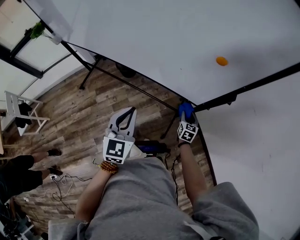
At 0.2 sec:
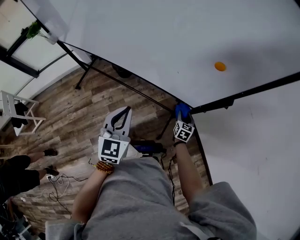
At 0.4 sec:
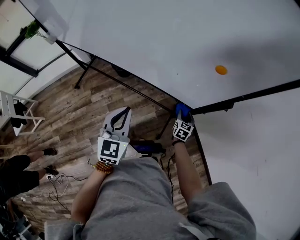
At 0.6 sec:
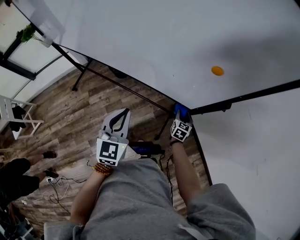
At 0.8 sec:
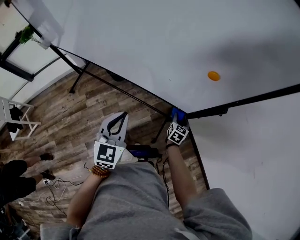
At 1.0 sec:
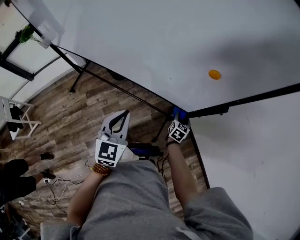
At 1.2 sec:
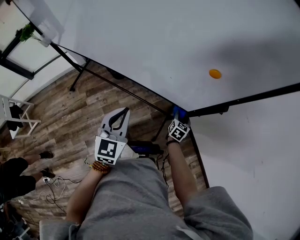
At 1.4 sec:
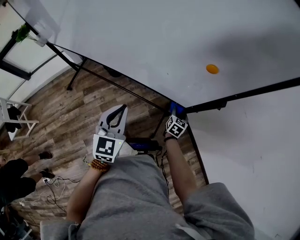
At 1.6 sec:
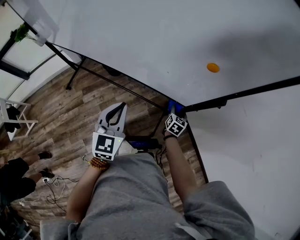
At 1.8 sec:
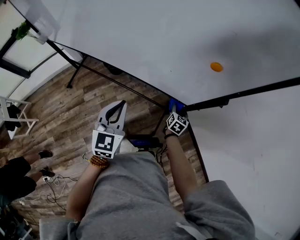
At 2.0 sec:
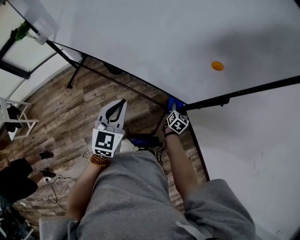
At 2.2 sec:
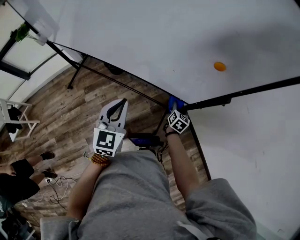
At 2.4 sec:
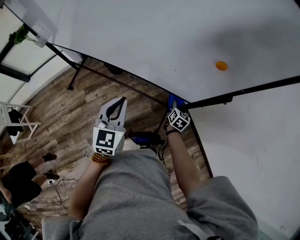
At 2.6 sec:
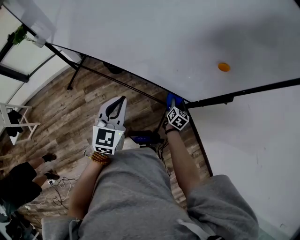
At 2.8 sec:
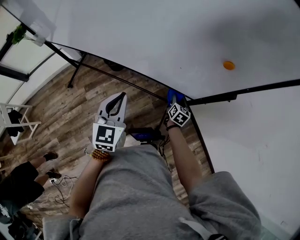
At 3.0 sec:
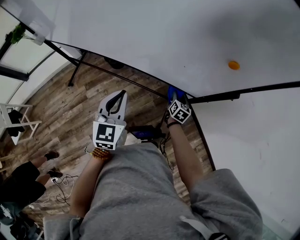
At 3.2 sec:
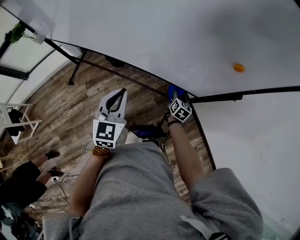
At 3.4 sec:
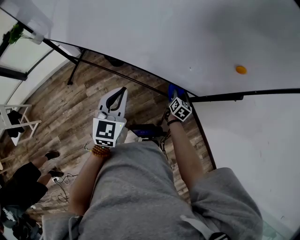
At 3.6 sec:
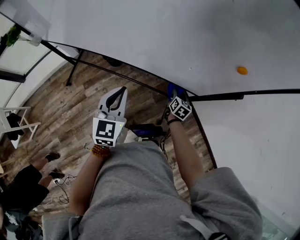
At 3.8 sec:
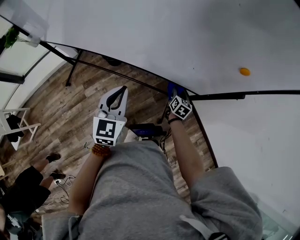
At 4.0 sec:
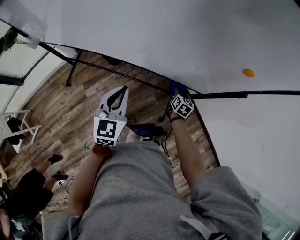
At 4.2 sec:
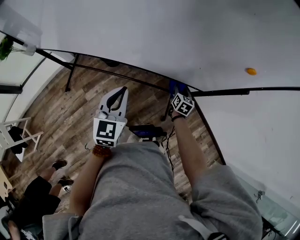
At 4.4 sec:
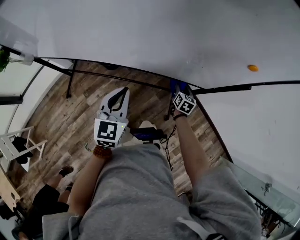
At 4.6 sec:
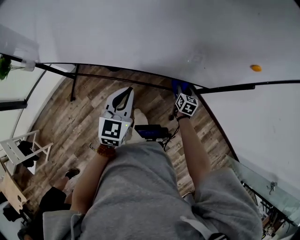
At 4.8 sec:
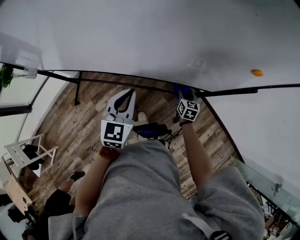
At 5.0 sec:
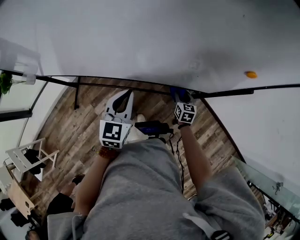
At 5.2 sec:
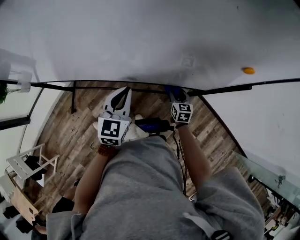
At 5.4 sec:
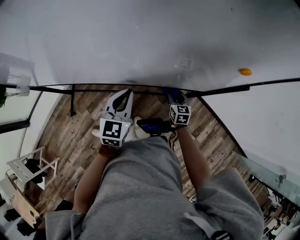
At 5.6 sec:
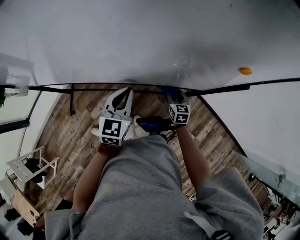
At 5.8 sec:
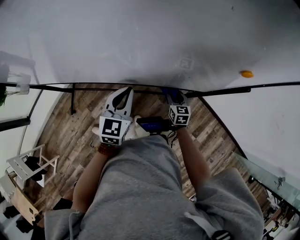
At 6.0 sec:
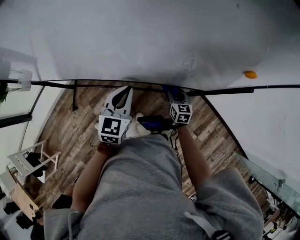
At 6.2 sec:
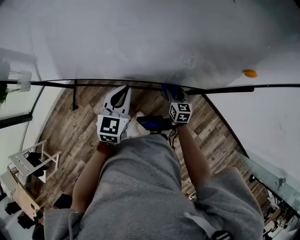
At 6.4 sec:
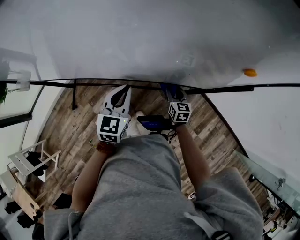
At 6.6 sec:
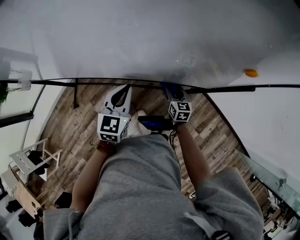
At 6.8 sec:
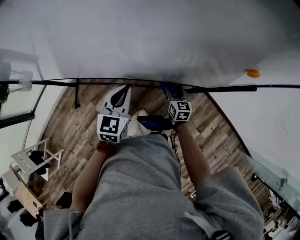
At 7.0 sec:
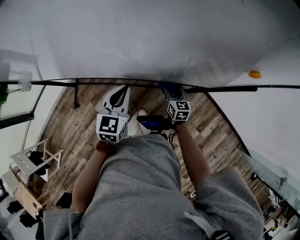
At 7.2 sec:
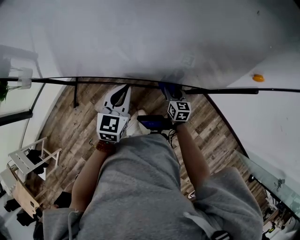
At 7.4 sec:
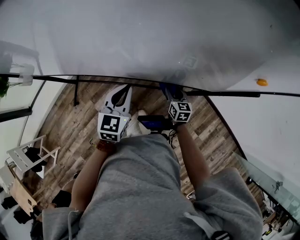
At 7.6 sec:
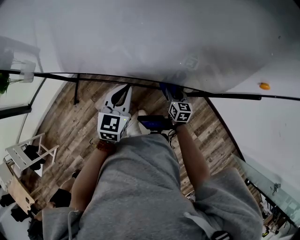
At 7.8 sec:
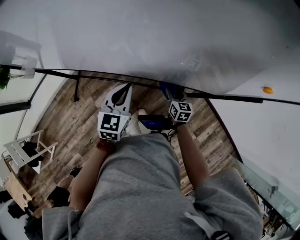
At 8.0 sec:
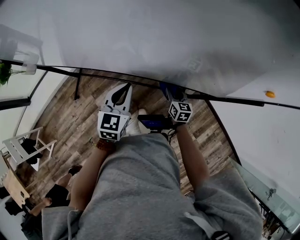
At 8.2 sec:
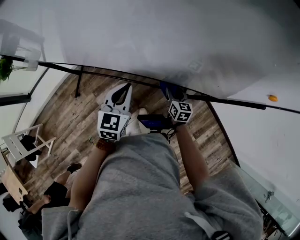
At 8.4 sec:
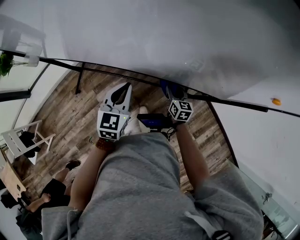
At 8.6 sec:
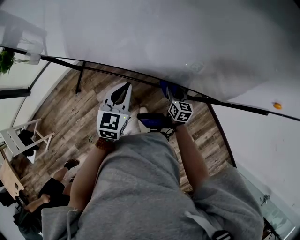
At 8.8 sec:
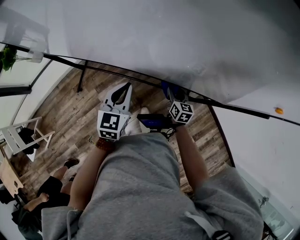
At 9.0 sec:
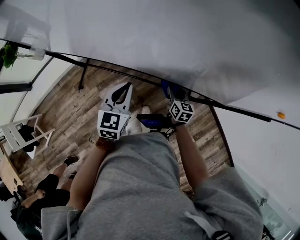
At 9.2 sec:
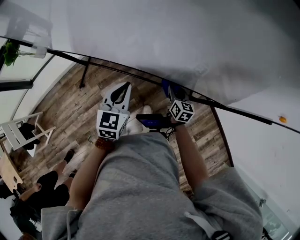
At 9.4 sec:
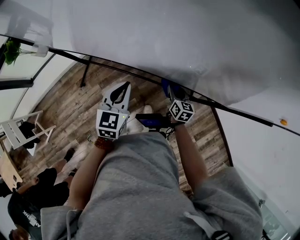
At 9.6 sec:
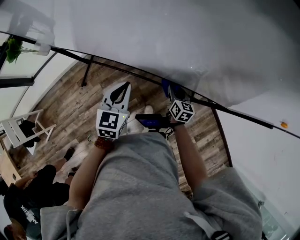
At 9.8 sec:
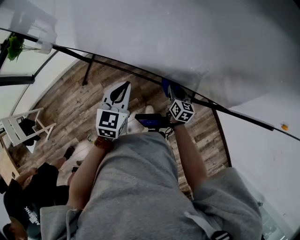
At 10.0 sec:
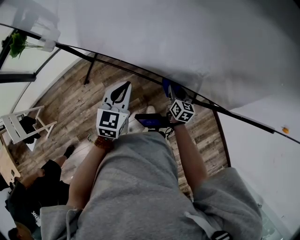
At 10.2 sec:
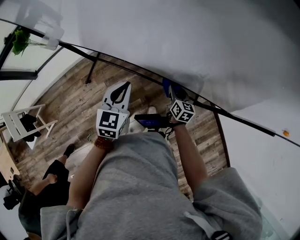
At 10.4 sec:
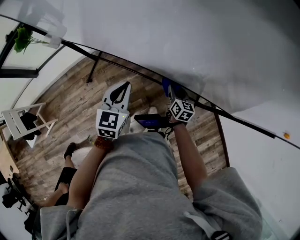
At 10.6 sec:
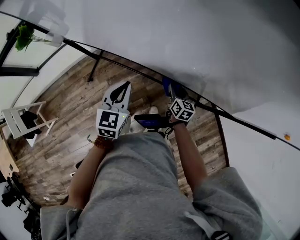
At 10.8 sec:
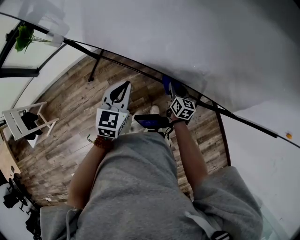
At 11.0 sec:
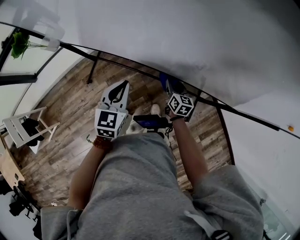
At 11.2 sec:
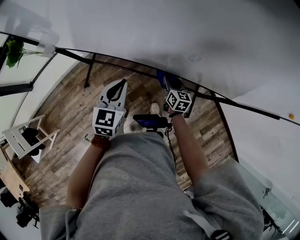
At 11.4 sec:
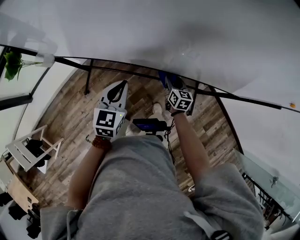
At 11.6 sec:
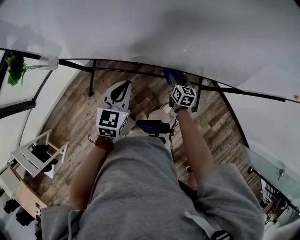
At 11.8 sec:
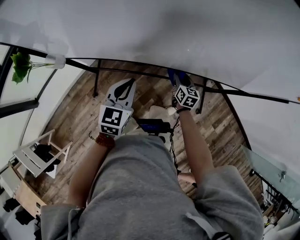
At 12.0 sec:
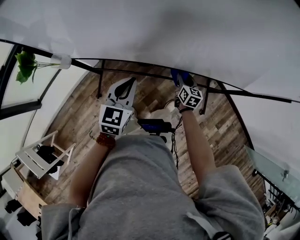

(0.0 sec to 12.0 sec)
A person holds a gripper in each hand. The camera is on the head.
0.0 sec - 1.6 sec: The grippers stay close to where they were, moving slightly.
1.6 sec - 3.0 sec: The two grippers go some 5 cm to the left.
3.0 sec - 4.4 sec: The left gripper is displaced to the left by roughly 10 cm.
4.4 sec - 6.0 sec: The left gripper moves forward, some 10 cm.
6.0 sec - 7.6 sec: Both grippers move to the left, roughly 5 cm.
7.6 sec - 9.0 sec: Both grippers travel together to the left, about 10 cm.
9.0 sec - 10.4 sec: The grippers both shift to the left by roughly 10 cm.
10.4 sec - 12.0 sec: The two grippers go about 10 cm to the left.

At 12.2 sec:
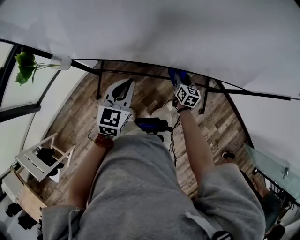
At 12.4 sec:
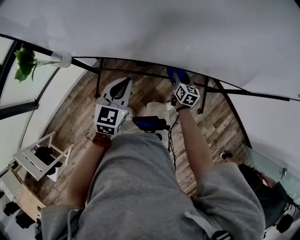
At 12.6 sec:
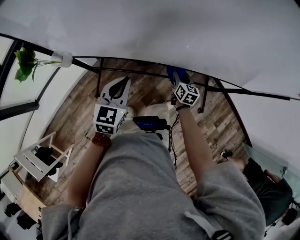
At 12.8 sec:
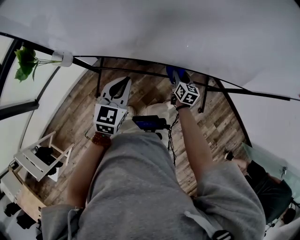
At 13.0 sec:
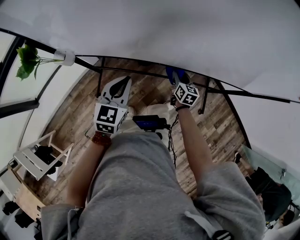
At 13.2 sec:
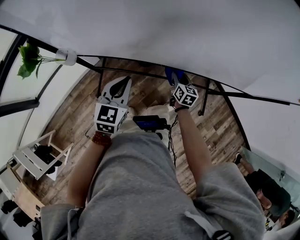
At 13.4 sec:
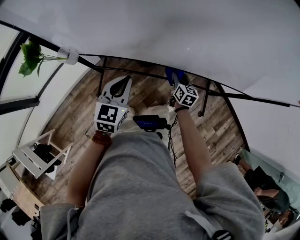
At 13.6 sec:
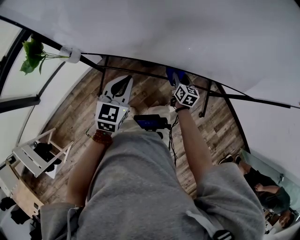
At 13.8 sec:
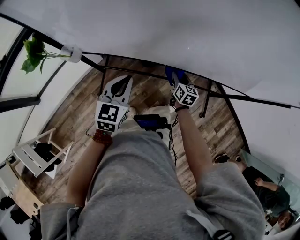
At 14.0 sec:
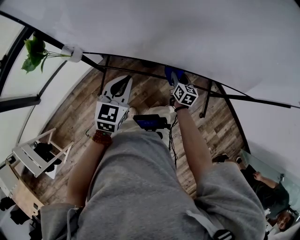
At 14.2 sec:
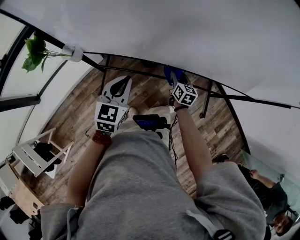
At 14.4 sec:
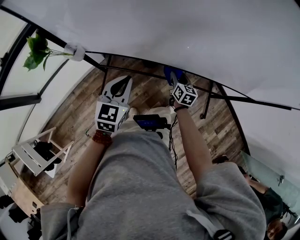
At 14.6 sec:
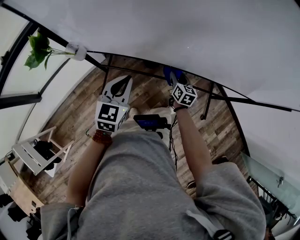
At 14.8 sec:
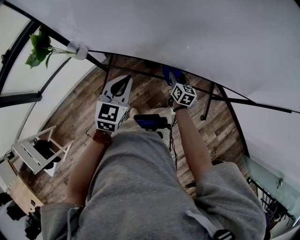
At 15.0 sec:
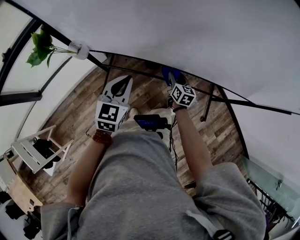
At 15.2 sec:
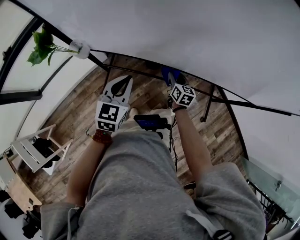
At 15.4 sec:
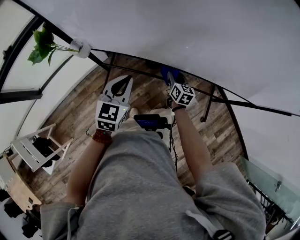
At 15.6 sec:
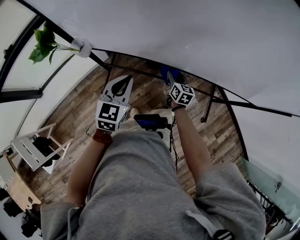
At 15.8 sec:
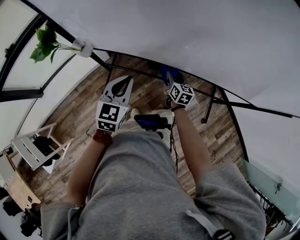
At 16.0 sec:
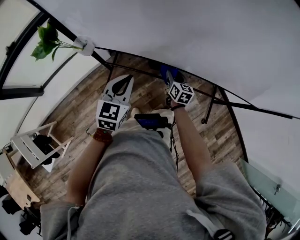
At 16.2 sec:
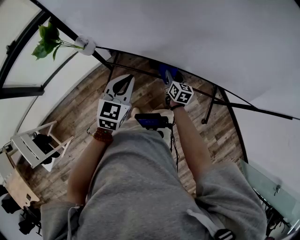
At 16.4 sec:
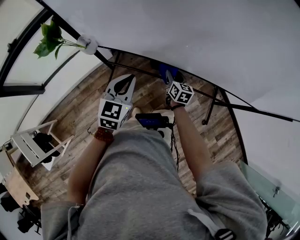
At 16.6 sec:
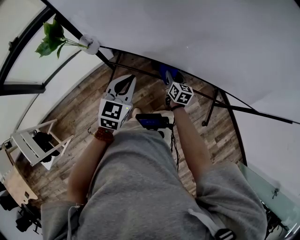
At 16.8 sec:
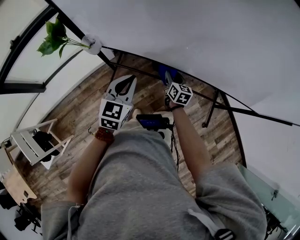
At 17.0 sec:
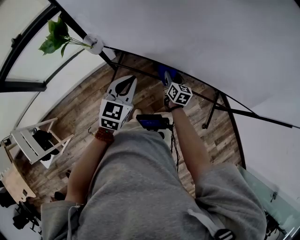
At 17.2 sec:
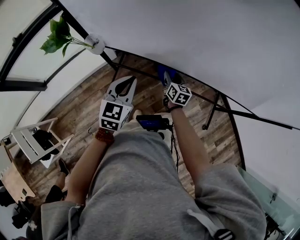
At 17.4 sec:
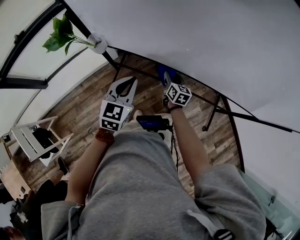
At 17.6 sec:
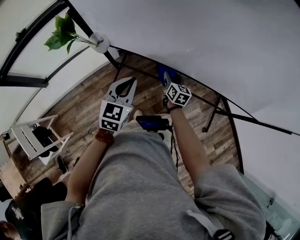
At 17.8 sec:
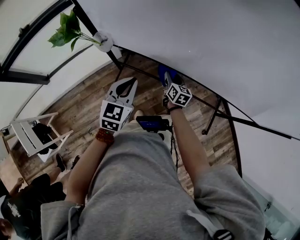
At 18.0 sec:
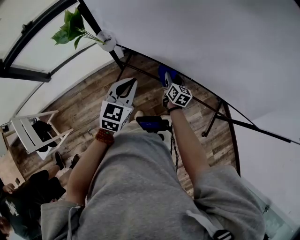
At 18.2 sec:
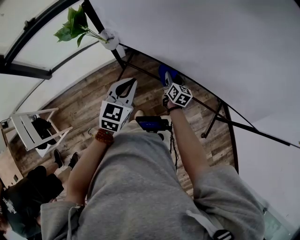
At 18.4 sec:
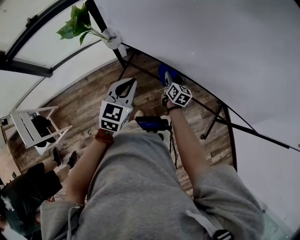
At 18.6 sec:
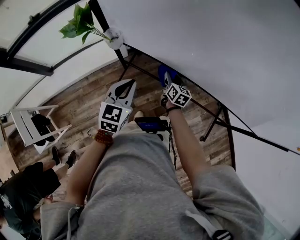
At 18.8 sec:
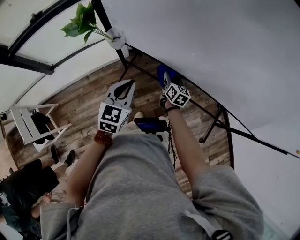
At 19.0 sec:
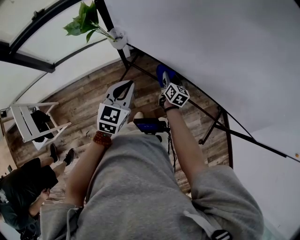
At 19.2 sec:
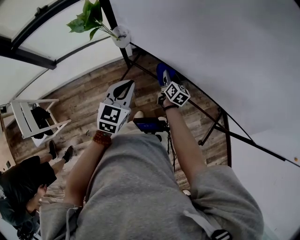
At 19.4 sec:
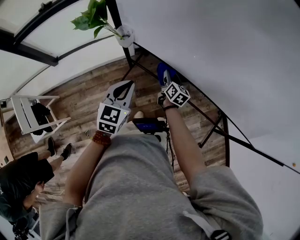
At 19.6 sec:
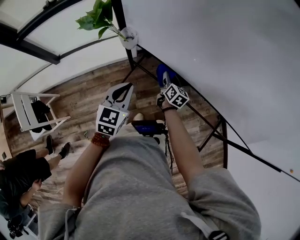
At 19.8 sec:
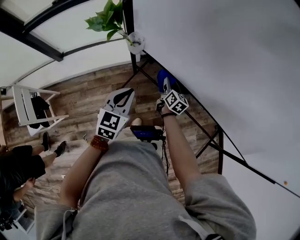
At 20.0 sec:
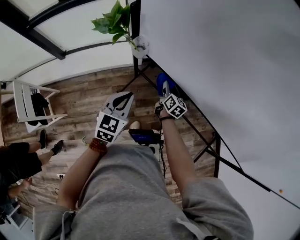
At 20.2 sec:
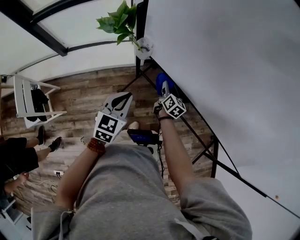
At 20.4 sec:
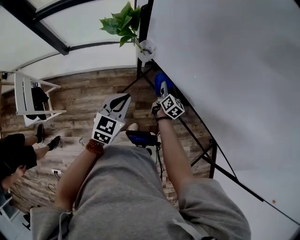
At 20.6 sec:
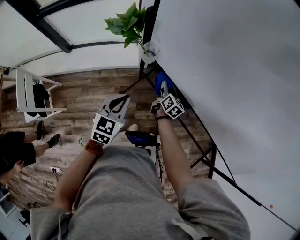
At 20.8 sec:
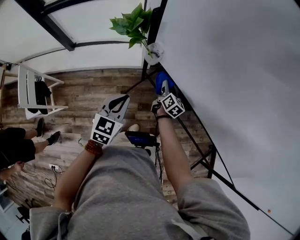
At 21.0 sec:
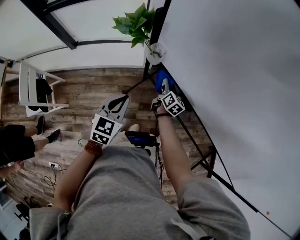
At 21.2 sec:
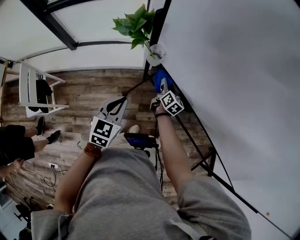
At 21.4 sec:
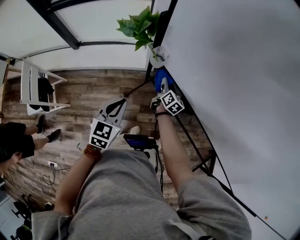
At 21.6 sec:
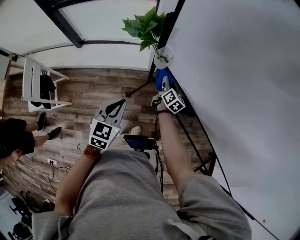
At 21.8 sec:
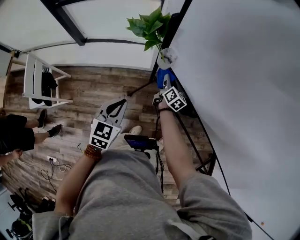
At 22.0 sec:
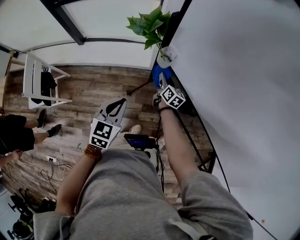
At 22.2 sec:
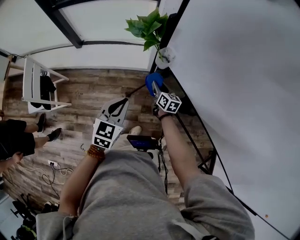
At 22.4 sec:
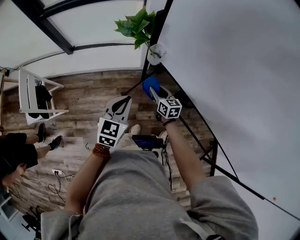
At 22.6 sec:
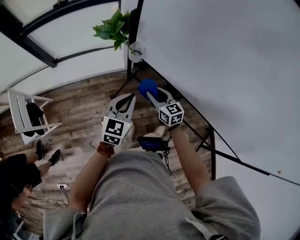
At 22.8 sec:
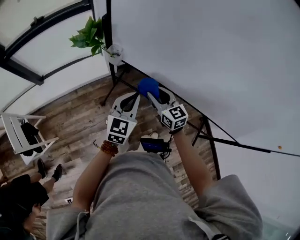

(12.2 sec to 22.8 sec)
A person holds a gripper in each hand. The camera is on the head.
12.2 sec - 13.8 sec: Both grippers move to the left, about 5 cm.
13.8 sec - 15.2 sec: The right gripper moves to the left, approximately 5 cm.
15.2 sec - 16.8 sec: The right gripper goes about 5 cm to the left.
16.8 sec - 18.2 sec: The left gripper ends up some 5 cm from where it was, while the right gripper heads to the left, covering about 5 cm.
18.2 sec - 19.8 sec: The two grippers go roughly 10 cm to the left.
19.8 sec - 21.2 sec: The right gripper heads to the left and forward, covering approximately 10 cm, while the left gripper is displaced to the left by some 5 cm.
21.2 sec - 22.8 sec: The left gripper moves to the right and upward, approximately 15 cm, and turns by about 20 degrees. Meanwhile the right gripper travels upward and backward by approximately 25 cm, and changes its angle by some 40 degrees.

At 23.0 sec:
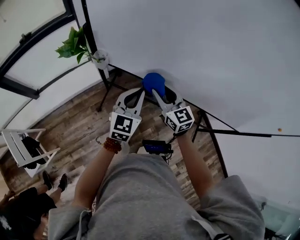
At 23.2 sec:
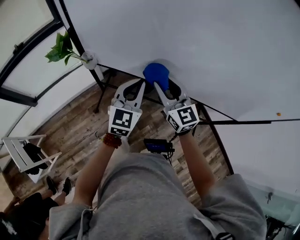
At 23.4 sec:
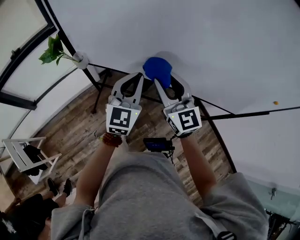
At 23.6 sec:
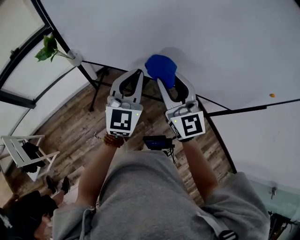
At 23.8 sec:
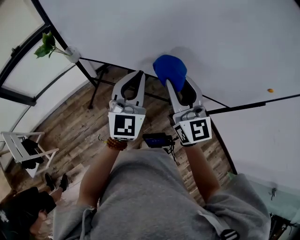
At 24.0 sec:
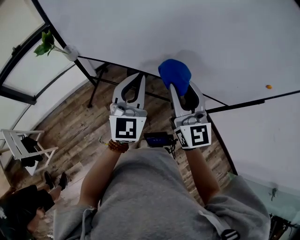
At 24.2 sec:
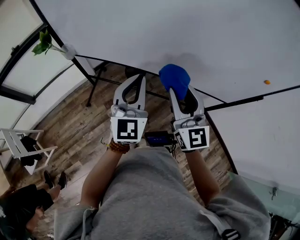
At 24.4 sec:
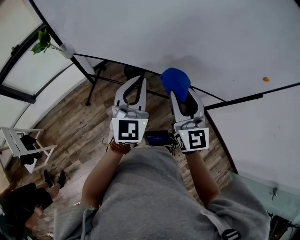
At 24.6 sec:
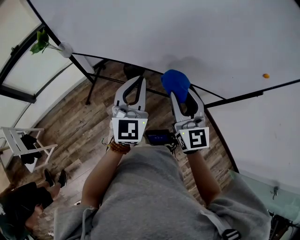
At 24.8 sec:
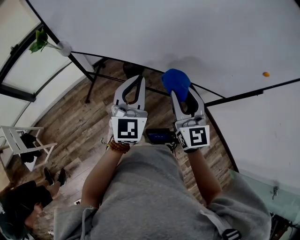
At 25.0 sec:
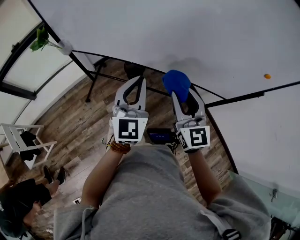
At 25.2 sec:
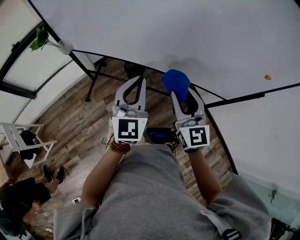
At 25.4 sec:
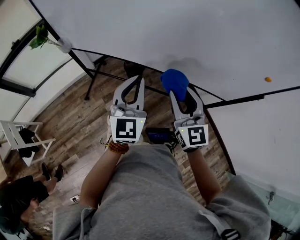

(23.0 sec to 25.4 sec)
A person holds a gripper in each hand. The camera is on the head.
23.0 sec - 24.2 sec: The grippers both shift to the right, backward and upward by about 35 cm. The right gripper changes its angle by some 30 degrees.
24.2 sec - 25.4 sec: The right gripper is displaced downward and to the right by roughly 10 cm; the left gripper ends up roughly 5 cm from where it was.
